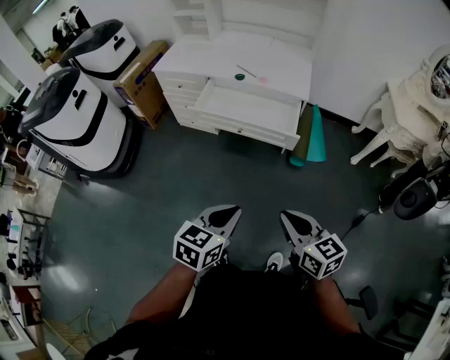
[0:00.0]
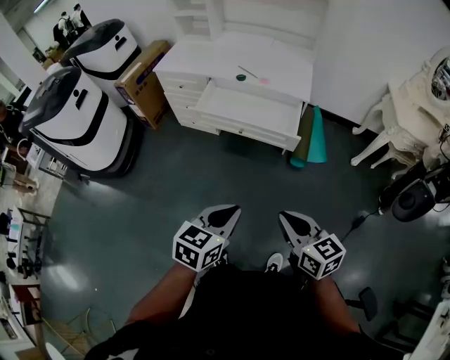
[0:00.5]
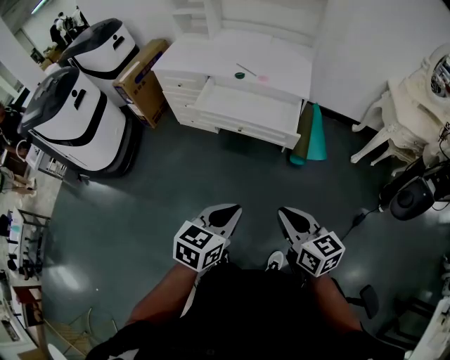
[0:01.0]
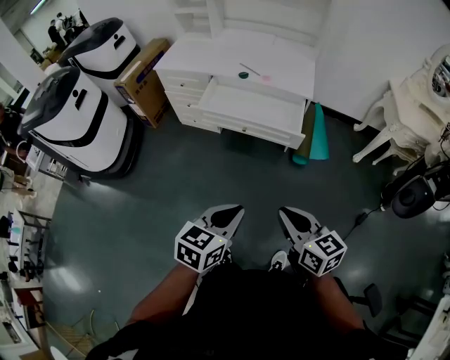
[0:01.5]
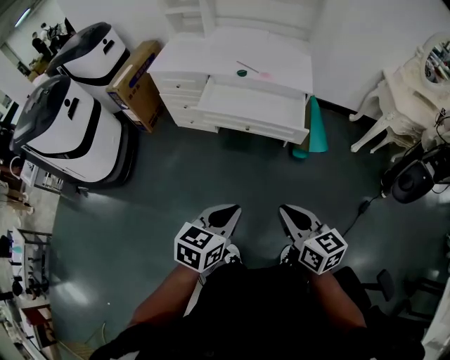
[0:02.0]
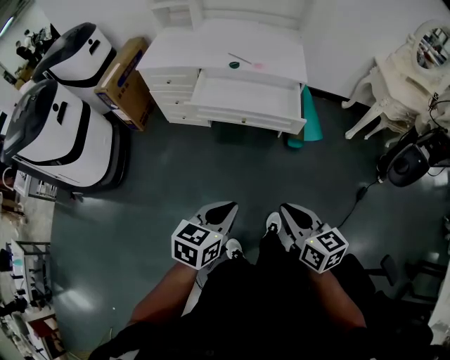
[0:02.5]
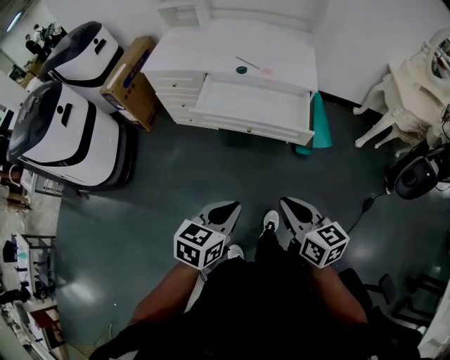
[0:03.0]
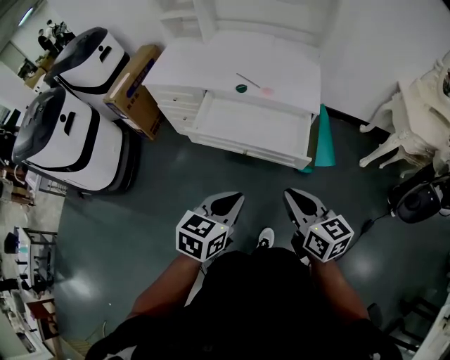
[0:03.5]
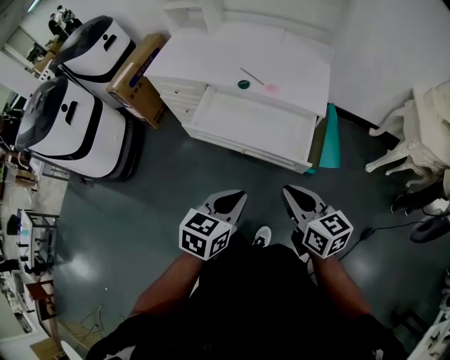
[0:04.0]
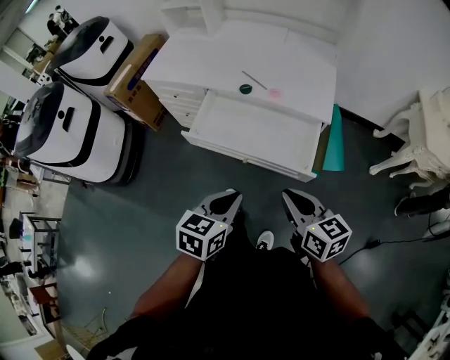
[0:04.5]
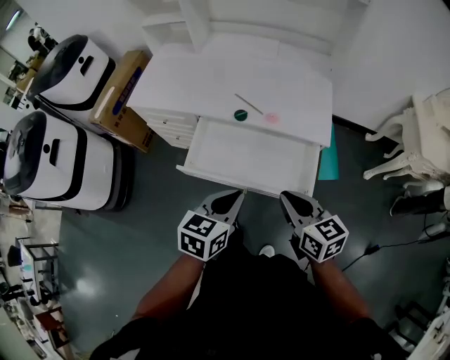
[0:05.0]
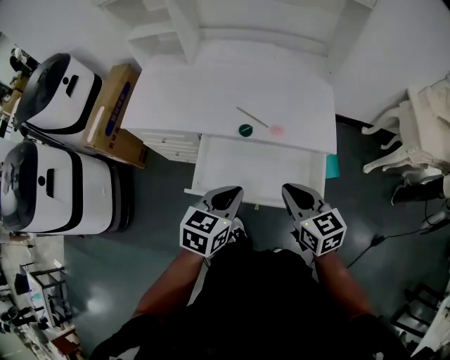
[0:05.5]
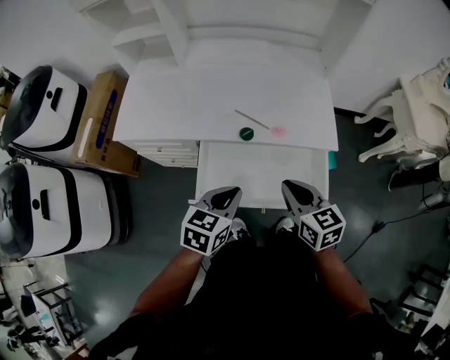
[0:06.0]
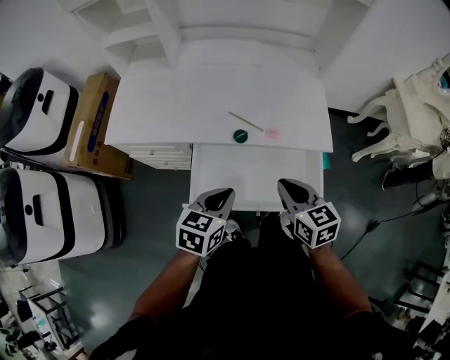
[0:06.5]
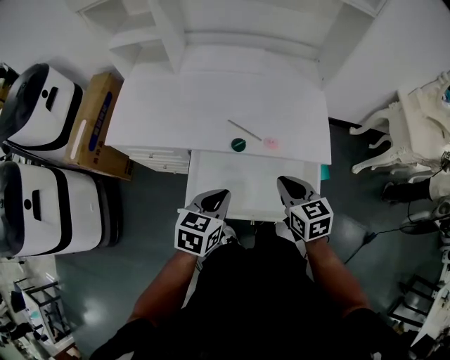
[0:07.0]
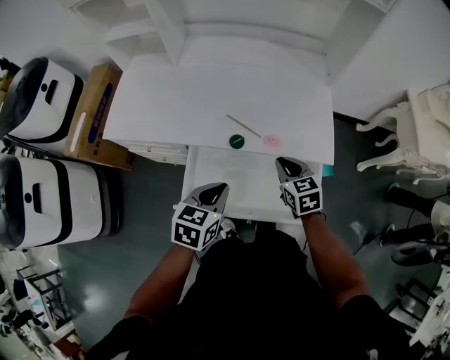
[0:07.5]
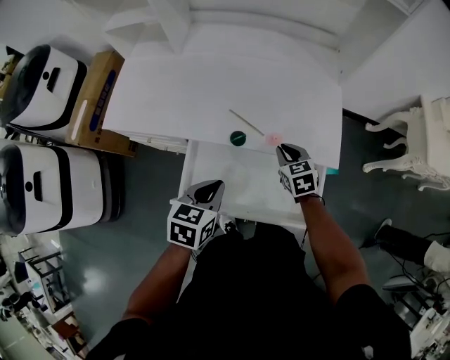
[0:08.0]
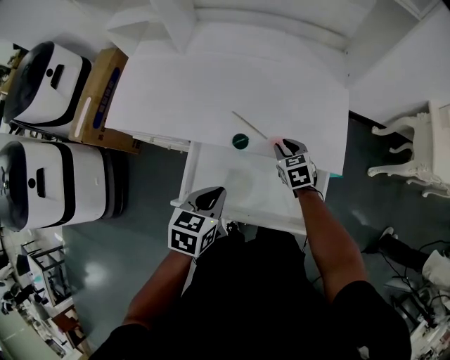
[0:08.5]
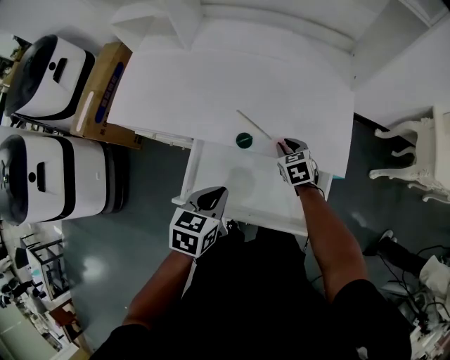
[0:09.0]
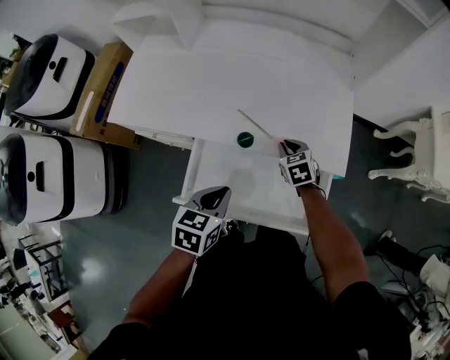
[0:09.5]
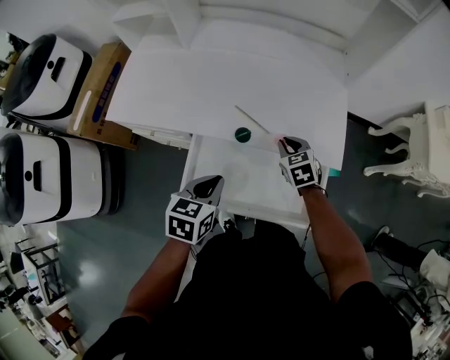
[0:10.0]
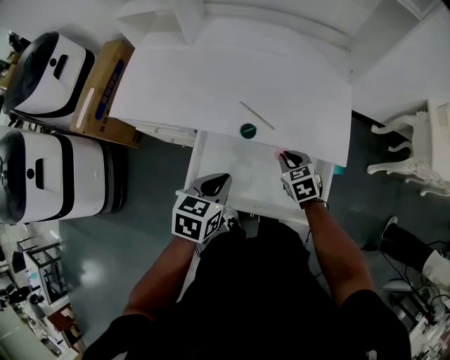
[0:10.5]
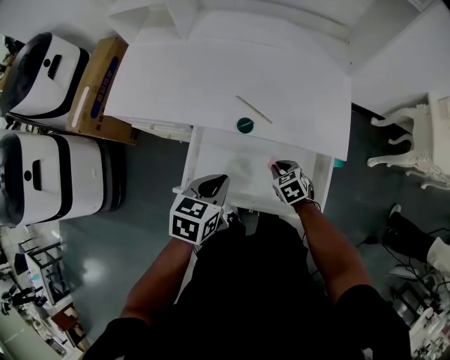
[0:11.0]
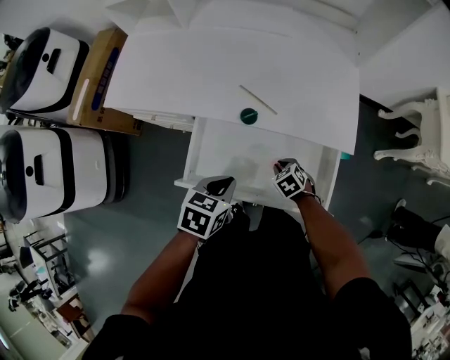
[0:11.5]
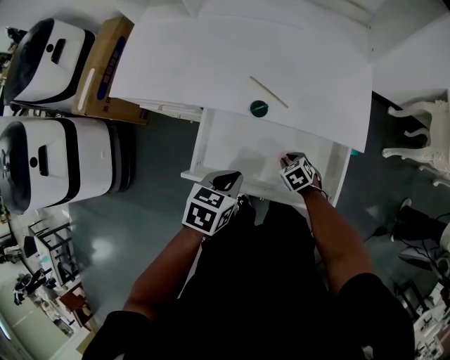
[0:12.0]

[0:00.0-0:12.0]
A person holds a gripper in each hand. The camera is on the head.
0:00.0 to 0:02.0: The two grippers go approximately 10 cm to the left.
0:02.0 to 0:04.0: The two grippers go roughly 25 cm forward.
0:04.0 to 0:06.0: Both grippers travel together forward and to the left, approximately 30 cm. The right gripper changes its angle by some 20 degrees.
0:06.0 to 0:08.0: The right gripper goes approximately 25 cm forward and downward, and turns by about 20 degrees; the left gripper goes about 5 cm forward.
0:08.0 to 0:10.0: The grippers stay close to where they were, moving slightly.
0:10.0 to 0:12.0: The left gripper goes approximately 5 cm downward; the right gripper goes some 20 cm downward and backward, and rotates roughly 20 degrees.

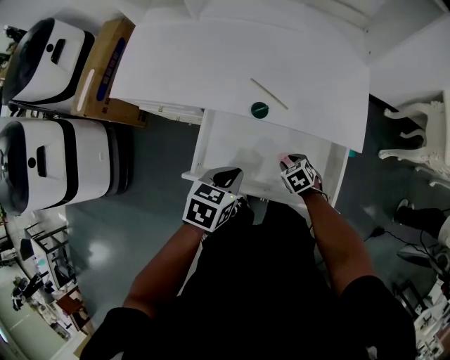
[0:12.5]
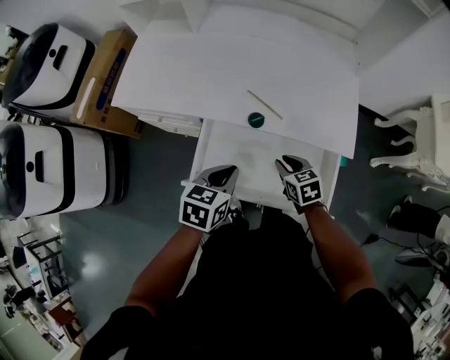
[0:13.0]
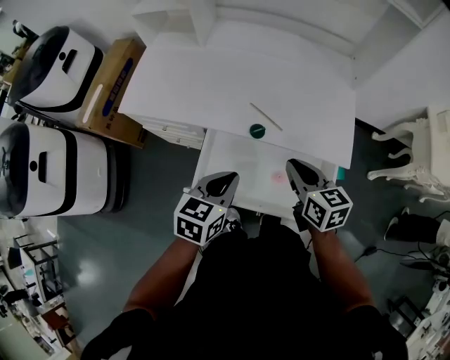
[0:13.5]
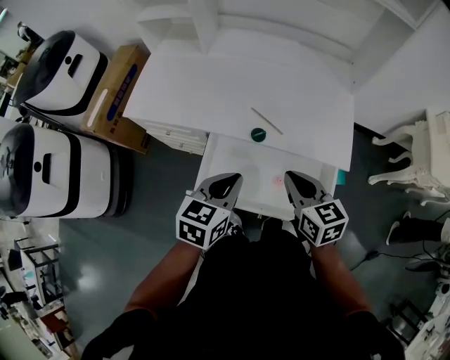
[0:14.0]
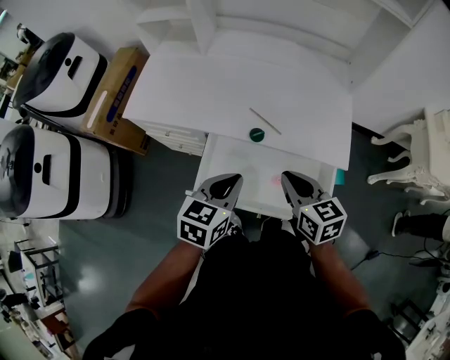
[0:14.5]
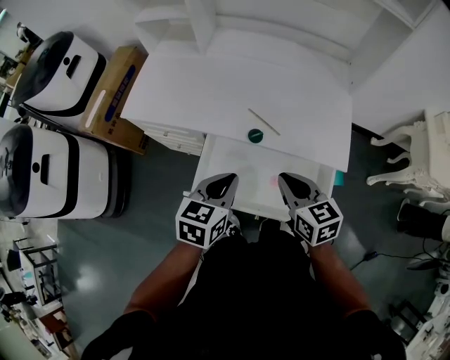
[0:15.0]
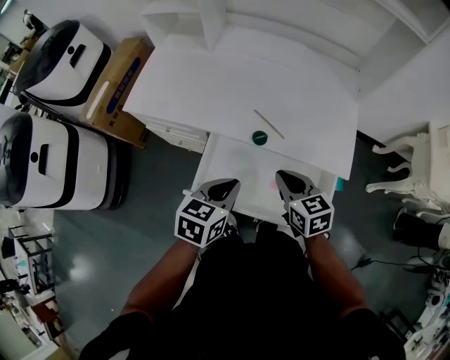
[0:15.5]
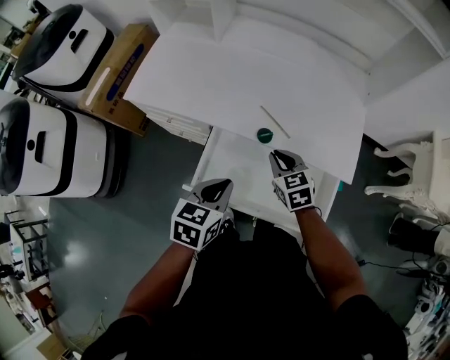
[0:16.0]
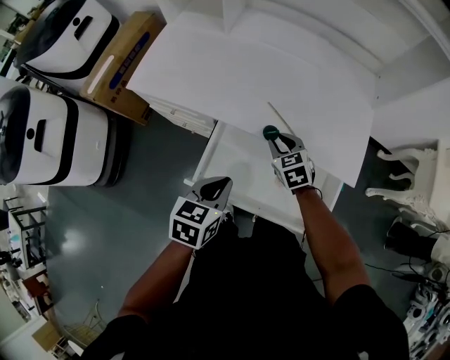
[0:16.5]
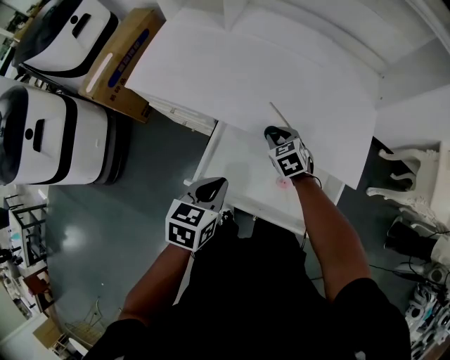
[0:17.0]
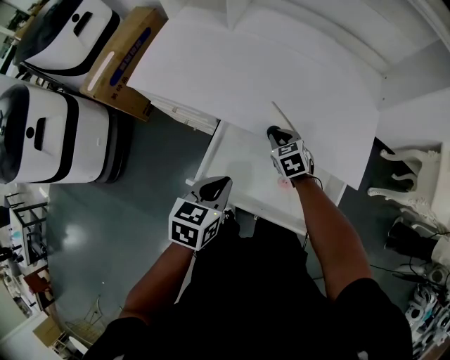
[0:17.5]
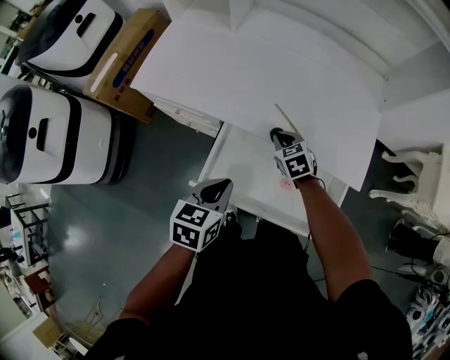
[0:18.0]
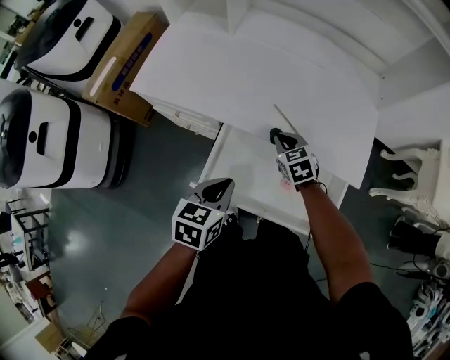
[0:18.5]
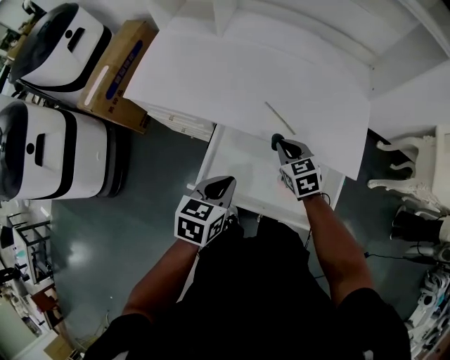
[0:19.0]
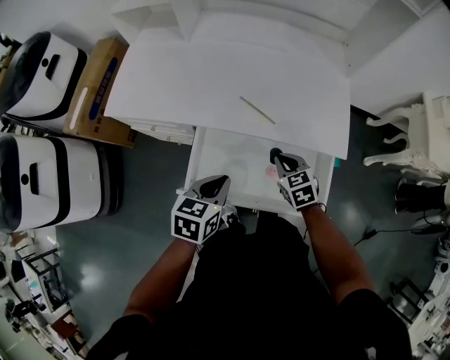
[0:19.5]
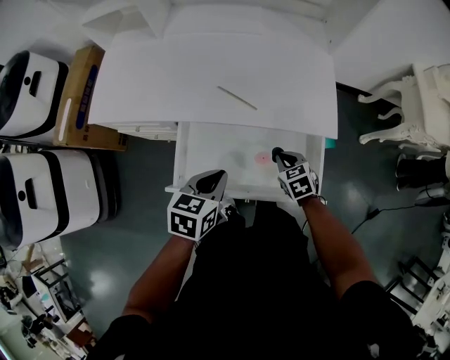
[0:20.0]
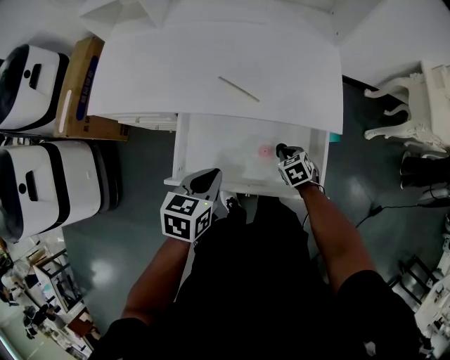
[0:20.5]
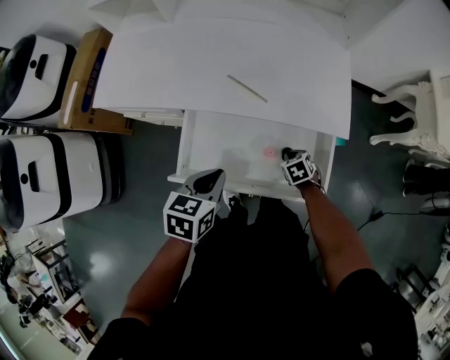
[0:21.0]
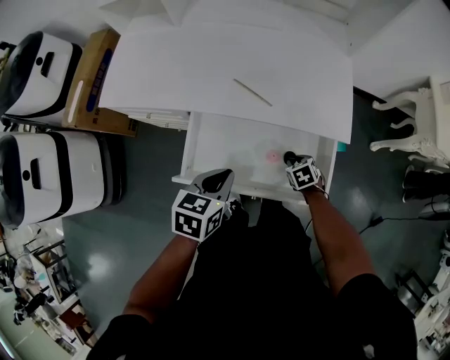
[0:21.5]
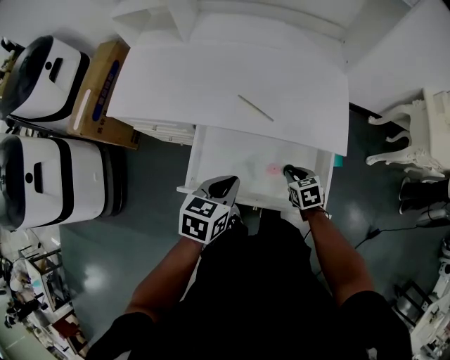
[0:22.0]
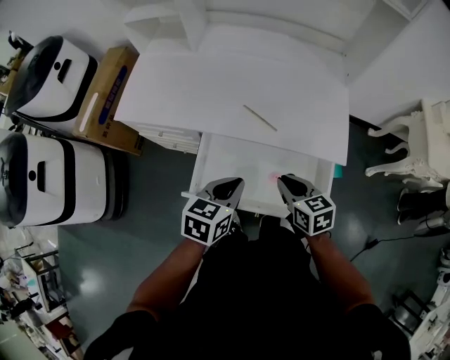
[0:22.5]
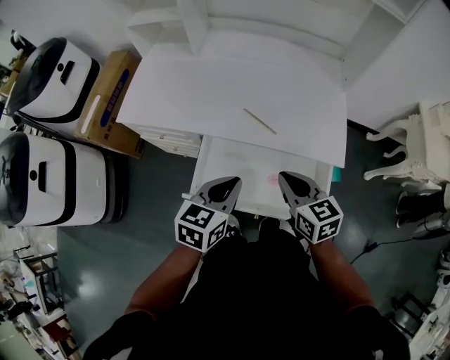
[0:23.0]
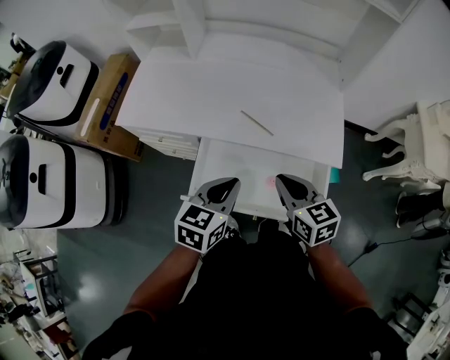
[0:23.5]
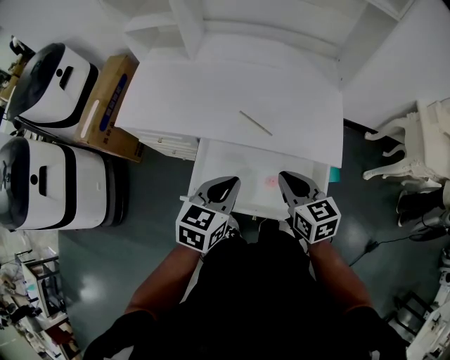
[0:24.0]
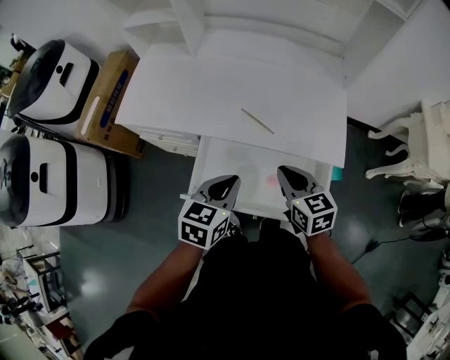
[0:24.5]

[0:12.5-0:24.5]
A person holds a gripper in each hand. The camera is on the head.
0:12.5 to 0:14.5: The right gripper shifts roughly 30 cm upward, tips its fingers upward by roughly 40 degrees, and closes, while the left gripper shifts approximately 10 cm upward, and changes its angle by about 20 degrees.
0:14.5 to 0:16.5: The right gripper is displaced downward and forward by about 20 cm, and rotates roughly 30 degrees. Meanwhile the left gripper travels downward by roughly 5 cm.
0:16.5 to 0:18.5: The grippers move only a little.
0:18.5 to 0:20.5: The left gripper moves to the right, approximately 5 cm. Meanwhile the right gripper shifts about 25 cm to the right, backward and downward, and rotates roughly 20 degrees.
0:20.5 to 0:22.5: The right gripper heads upward and to the left, covering approximately 20 cm, and swivels some 30 degrees.
0:22.5 to 0:24.5: The right gripper moves upward, approximately 5 cm.

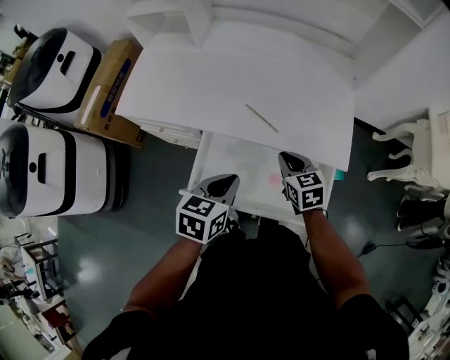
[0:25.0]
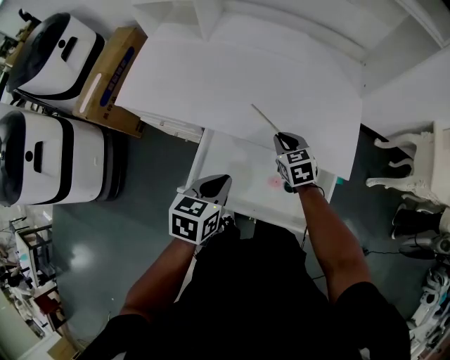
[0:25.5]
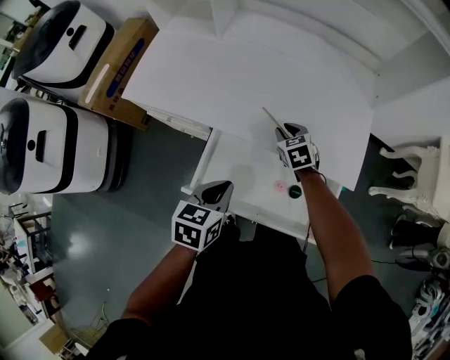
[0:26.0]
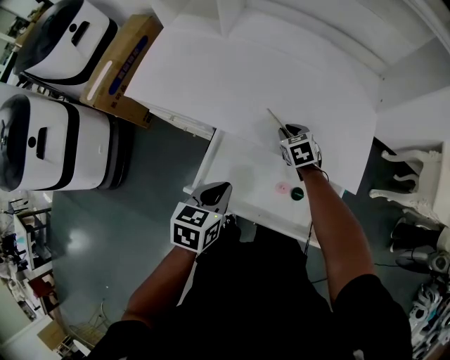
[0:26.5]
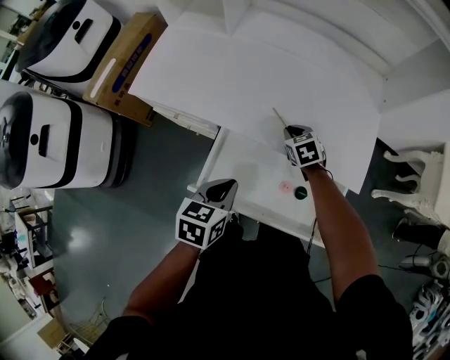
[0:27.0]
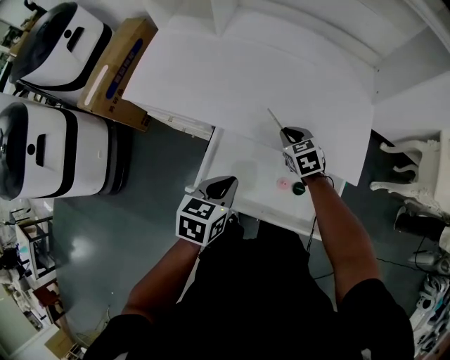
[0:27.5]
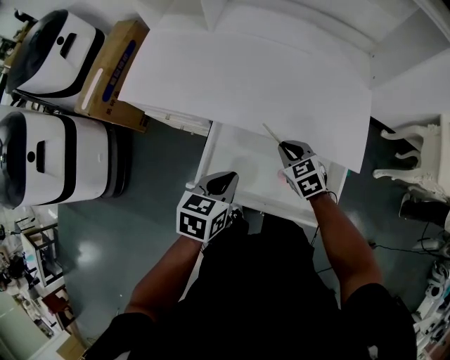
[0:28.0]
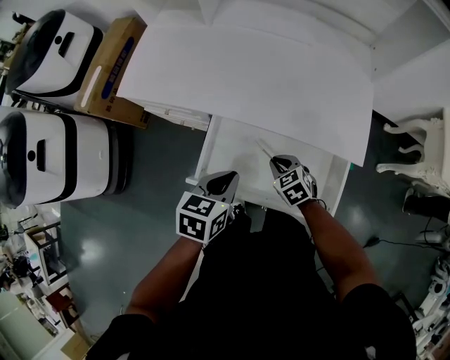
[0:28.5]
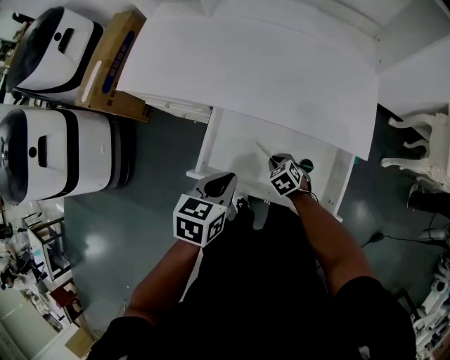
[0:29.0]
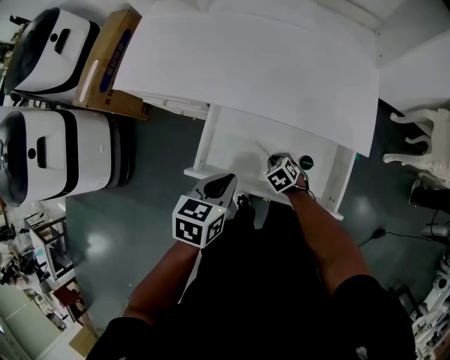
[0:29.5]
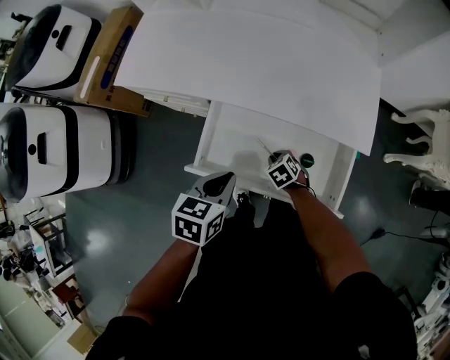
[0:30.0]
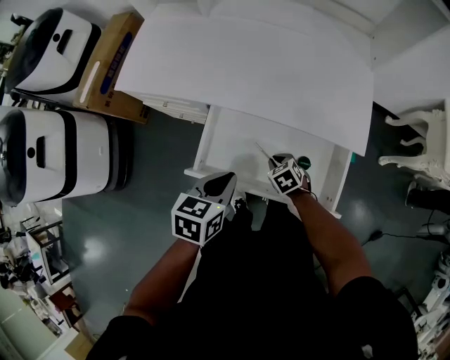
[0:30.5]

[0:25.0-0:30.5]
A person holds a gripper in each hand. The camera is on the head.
0:25.0 to 0:27.0: The right gripper is displaced forward, downward and to the left by some 15 cm, and turns by about 20 degrees. Meanwhile the left gripper heads to the left, covering roughly 5 cm.
0:27.0 to 0:28.5: The right gripper goes roughly 15 cm backward.
0:28.5 to 0:30.5: The right gripper travels downward by roughly 5 cm.
